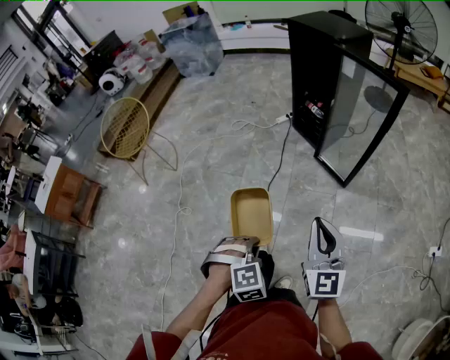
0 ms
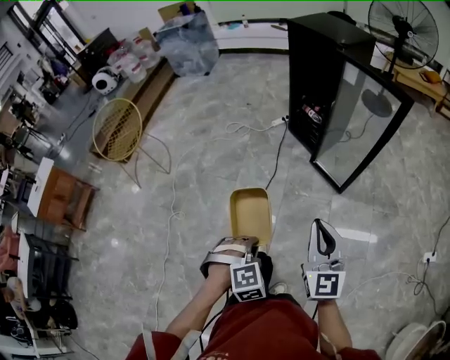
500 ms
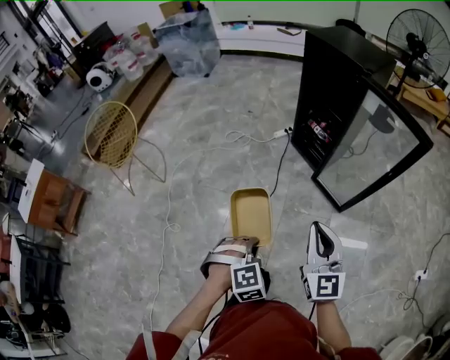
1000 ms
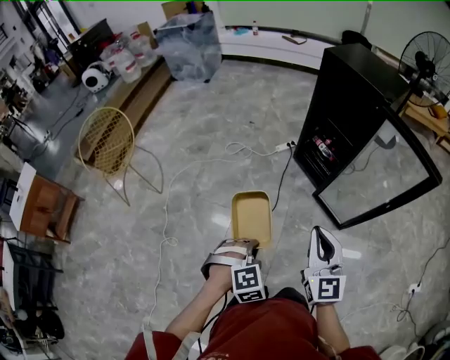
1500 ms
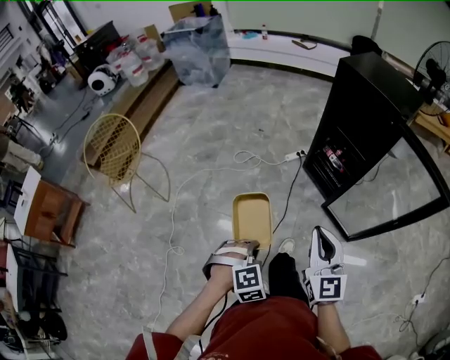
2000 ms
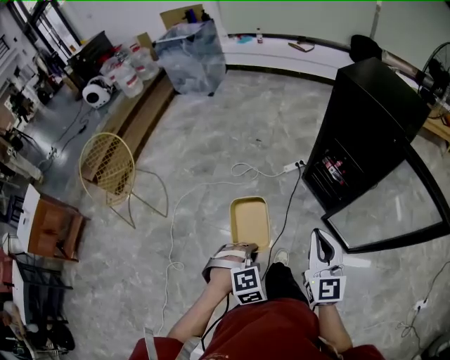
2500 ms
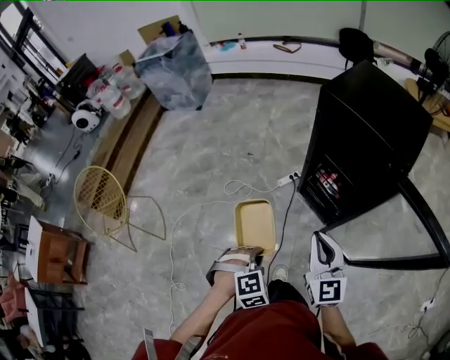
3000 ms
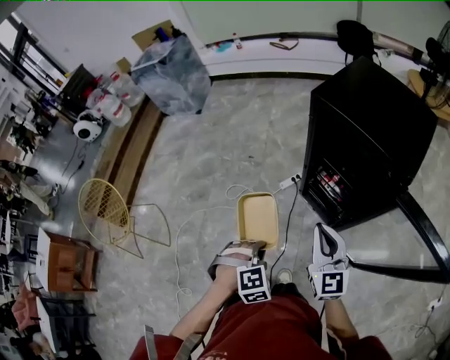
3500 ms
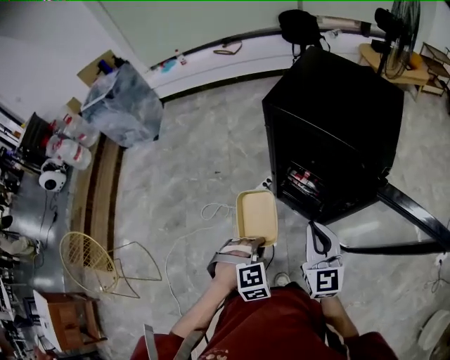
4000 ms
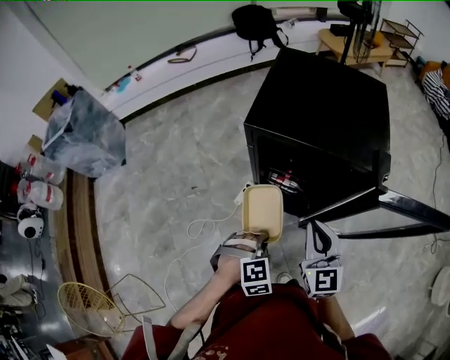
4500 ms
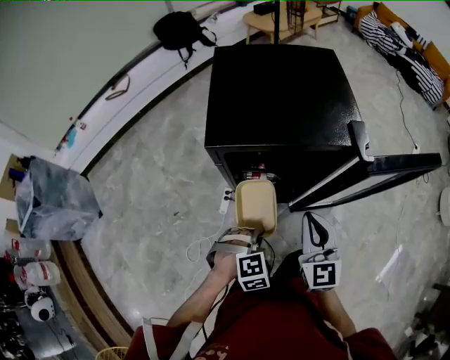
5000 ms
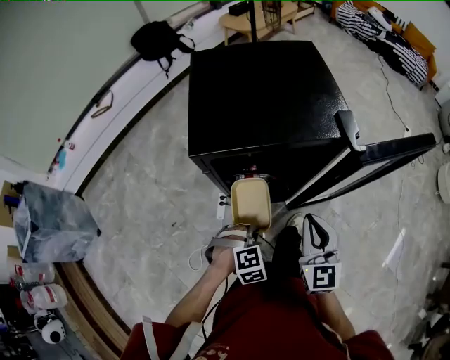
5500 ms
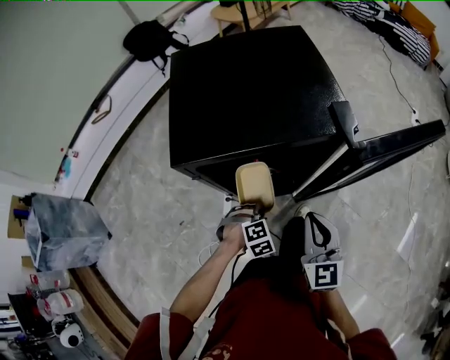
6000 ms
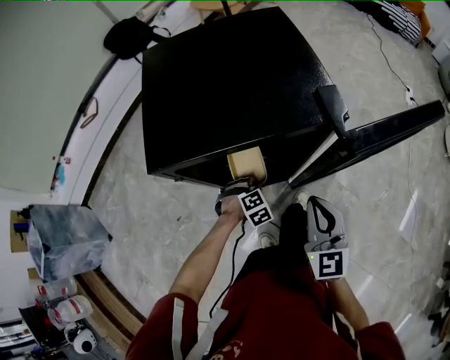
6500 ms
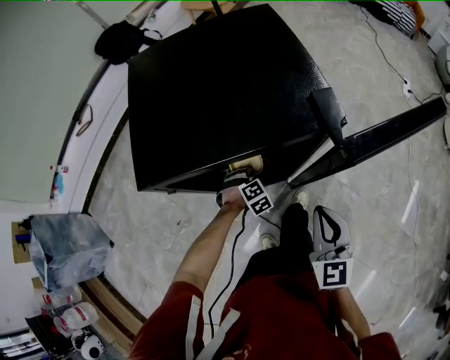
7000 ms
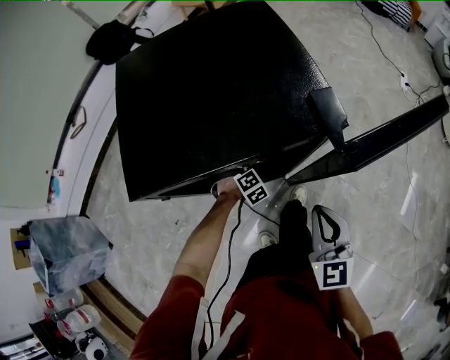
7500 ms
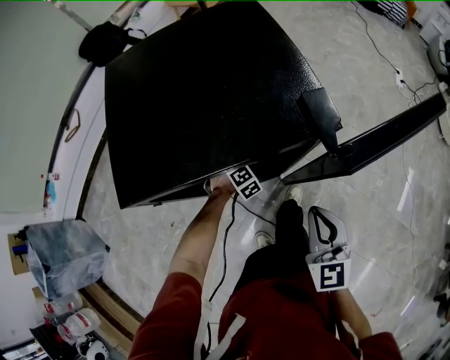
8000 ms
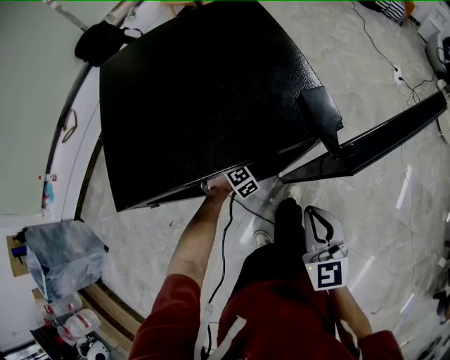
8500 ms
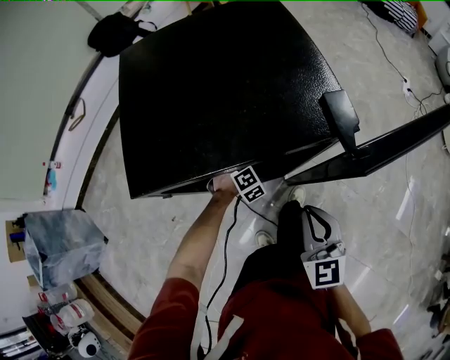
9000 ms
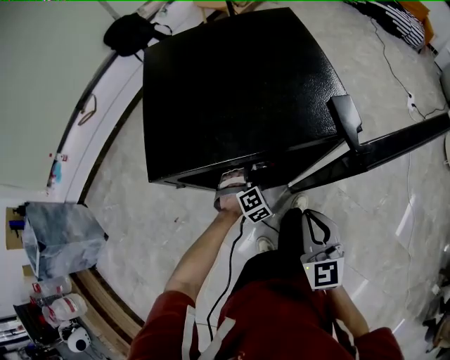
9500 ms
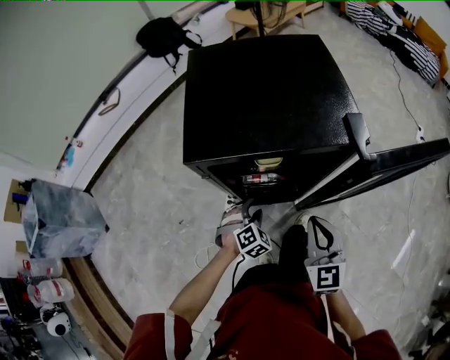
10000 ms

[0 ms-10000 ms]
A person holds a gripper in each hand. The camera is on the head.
0 ms to 2000 ms: Both grippers travel together forward, roughly 35 cm.
2000 ms to 4000 ms: Both grippers move forward and to the right, about 40 cm. The left gripper changes its angle by roughly 20 degrees.
4000 ms to 6000 ms: The left gripper ends up about 25 cm from where it was, and changes its angle by roughly 40 degrees, while the right gripper ends up some 5 cm from where it was, and changes its angle by roughly 50 degrees.
6000 ms to 8000 ms: The right gripper is displaced to the right by about 5 cm; the left gripper travels forward and downward by about 20 cm.
8000 ms to 10000 ms: The left gripper goes about 20 cm backward, upward and to the left, changes its angle by roughly 20 degrees, and opens its fingers; the right gripper is displaced to the left by approximately 5 cm.

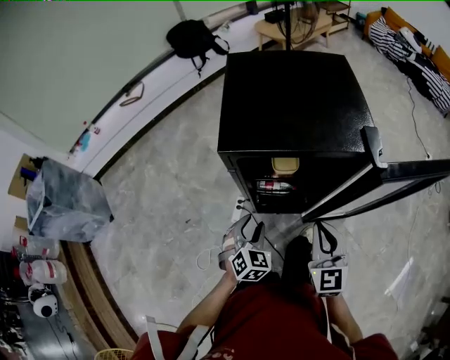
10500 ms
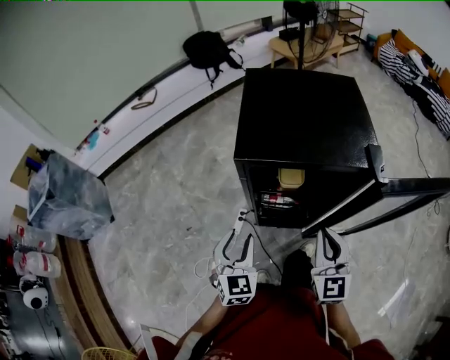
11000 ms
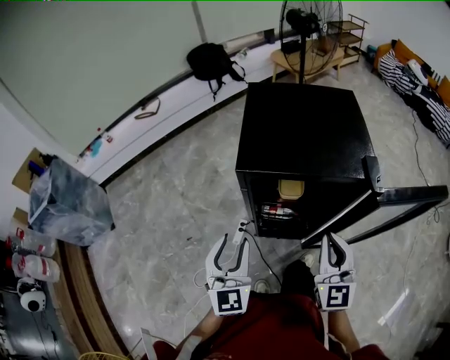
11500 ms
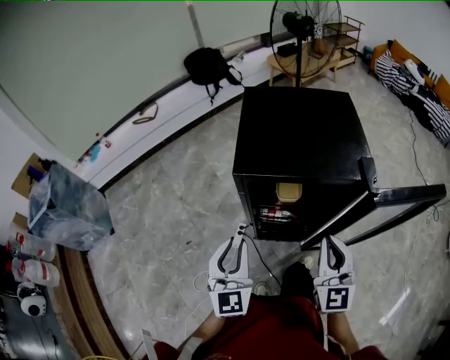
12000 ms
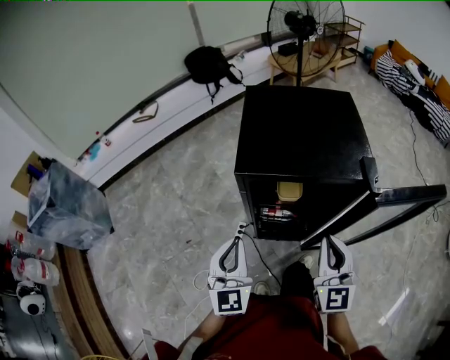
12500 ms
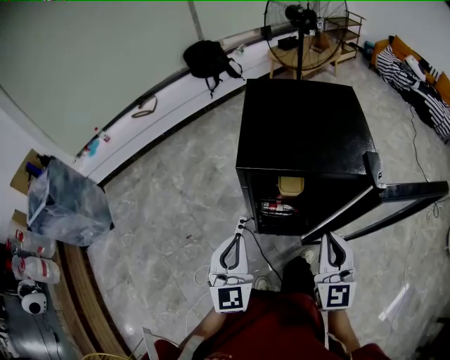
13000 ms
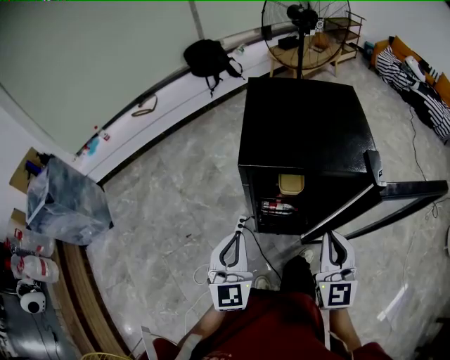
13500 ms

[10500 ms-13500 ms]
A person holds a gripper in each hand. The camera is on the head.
10500 ms to 12000 ms: The left gripper moves upward, about 20 cm, tilts its fingers about 40 degrees upward, and closes. Meanwhile the right gripper goes about 10 cm upward.
12000 ms to 13500 ms: The left gripper closes.

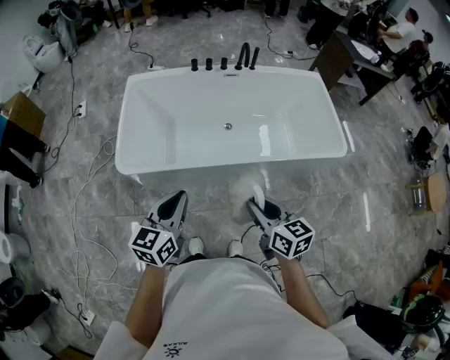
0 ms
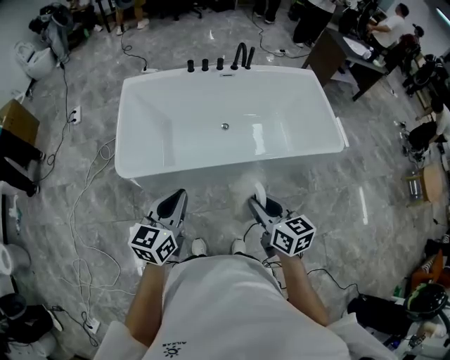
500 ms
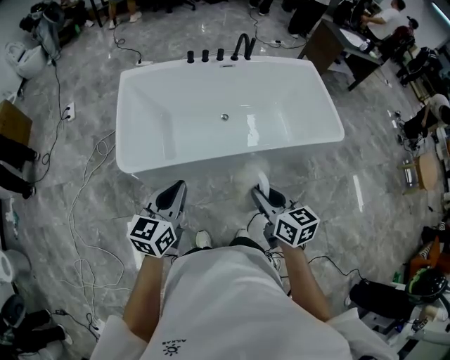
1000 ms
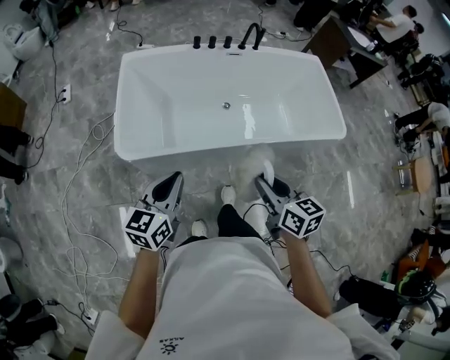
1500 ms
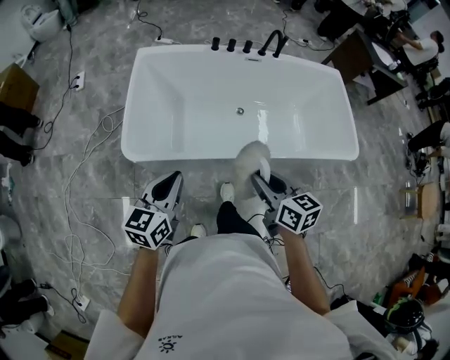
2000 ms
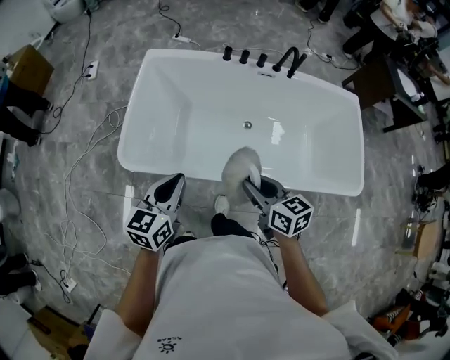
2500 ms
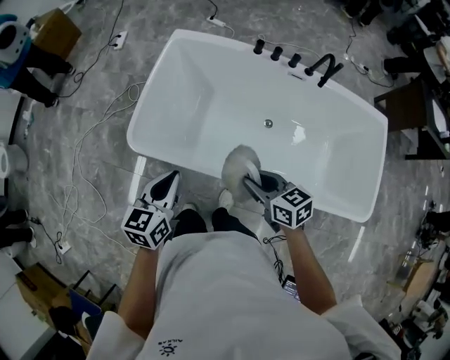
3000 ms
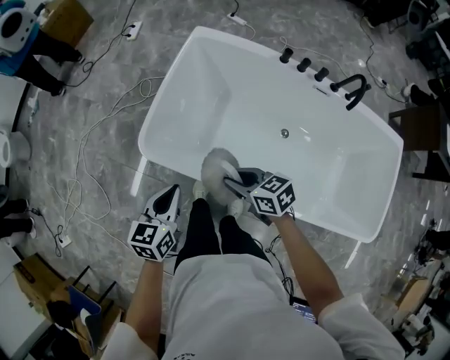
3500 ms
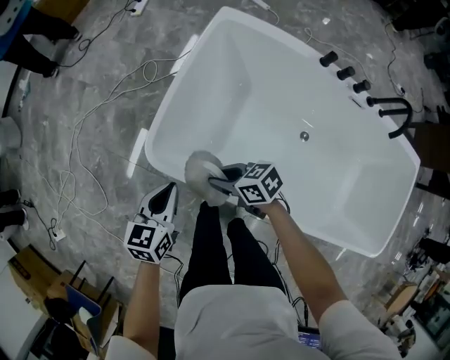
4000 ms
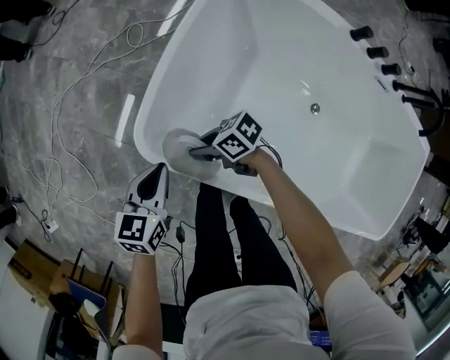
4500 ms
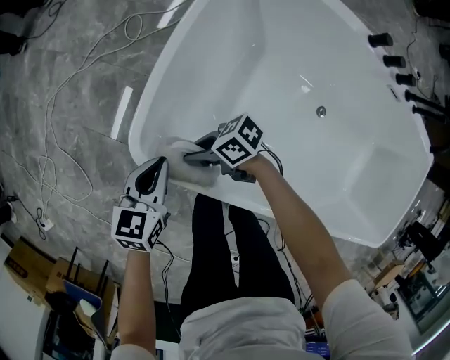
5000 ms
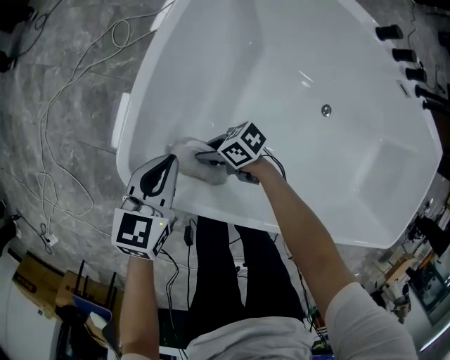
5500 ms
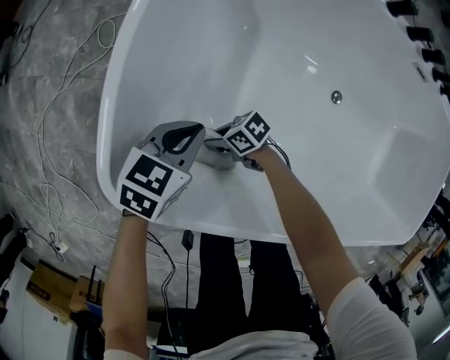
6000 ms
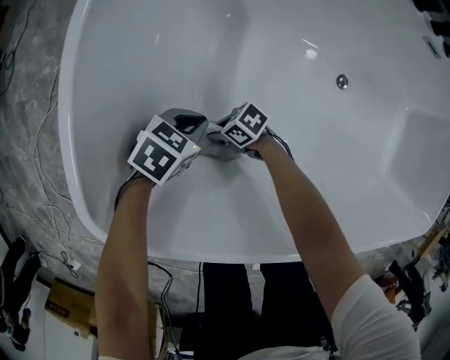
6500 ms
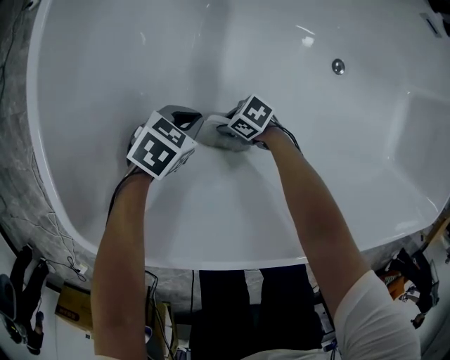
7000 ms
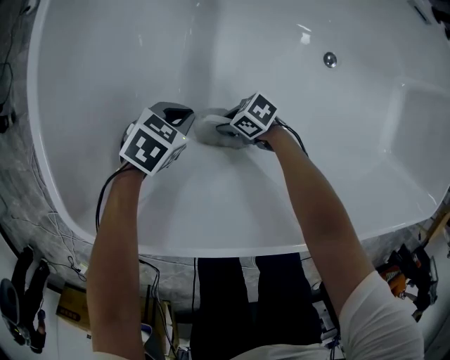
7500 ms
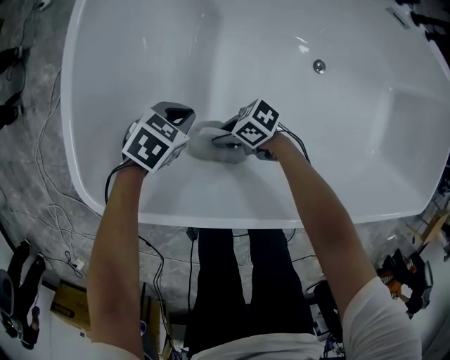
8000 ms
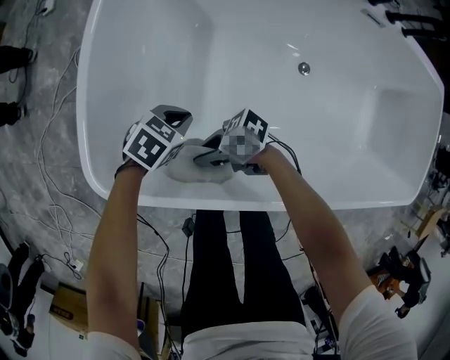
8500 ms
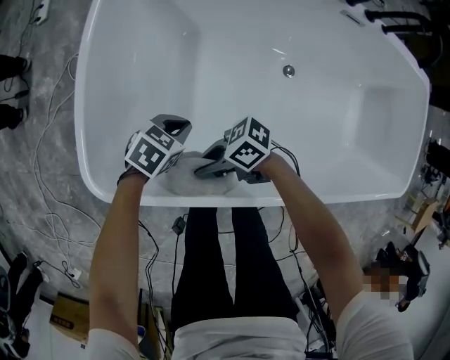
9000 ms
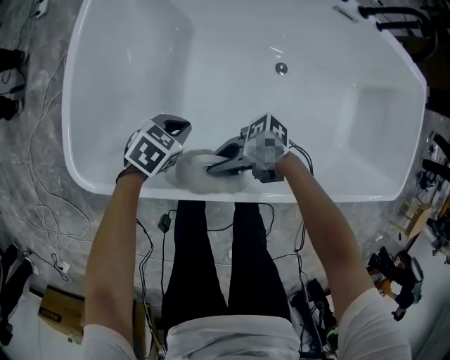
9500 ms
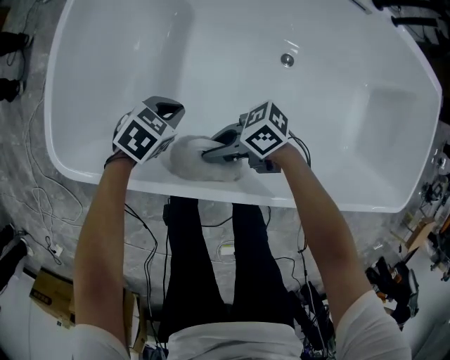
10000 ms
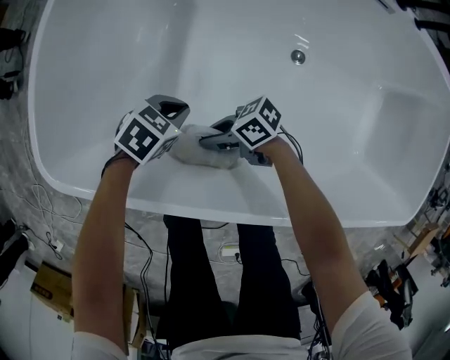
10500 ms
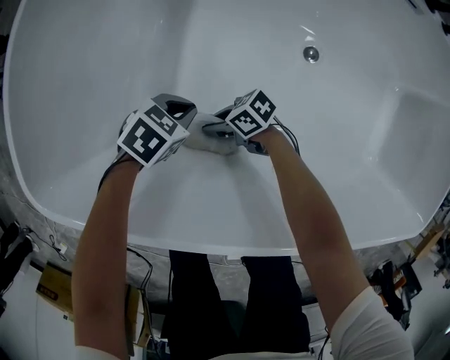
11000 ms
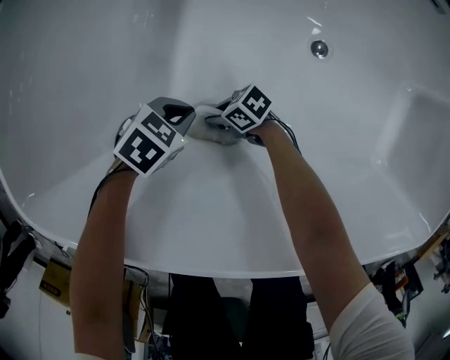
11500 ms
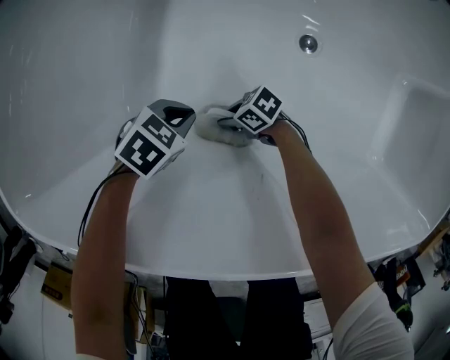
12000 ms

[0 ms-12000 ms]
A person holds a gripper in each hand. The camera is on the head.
0 ms to 2000 ms: The right gripper shifts about 15 cm forward and to the left. Meanwhile the left gripper moves to the left and forward, approximately 15 cm.
2000 ms to 4000 ms: The right gripper changes place by roughly 40 cm, and swivels approximately 70 degrees. Meanwhile the left gripper changes place by roughly 30 cm, and changes its angle by approximately 40 degrees.
4000 ms to 6000 ms: The two grippers go about 30 cm downward. The left gripper changes its angle by some 40 degrees.
6000 ms to 8000 ms: The left gripper goes approximately 10 cm downward, and rotates roughly 20 degrees. The right gripper goes downward and returns, approximately 15 cm each way.
8000 ms to 10000 ms: The right gripper is displaced upward by roughly 15 cm. Meanwhile the left gripper changes place by about 10 cm.
10000 ms to 12000 ms: The left gripper travels downward by roughly 15 cm. The right gripper is displaced downward by roughly 30 cm, and swivels about 20 degrees.

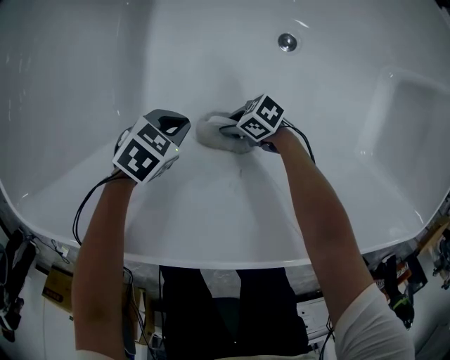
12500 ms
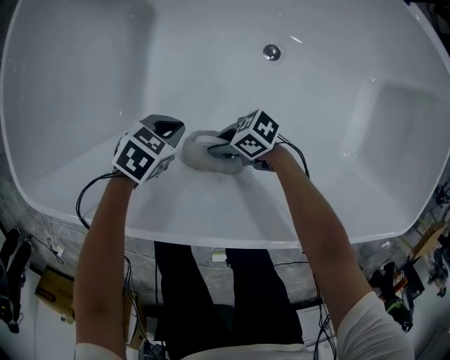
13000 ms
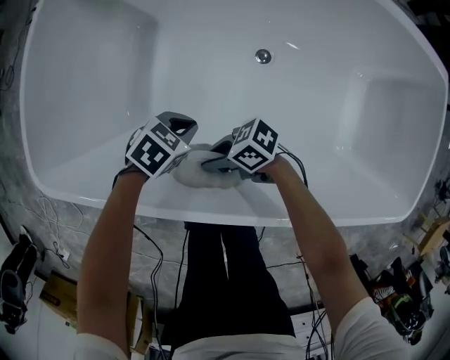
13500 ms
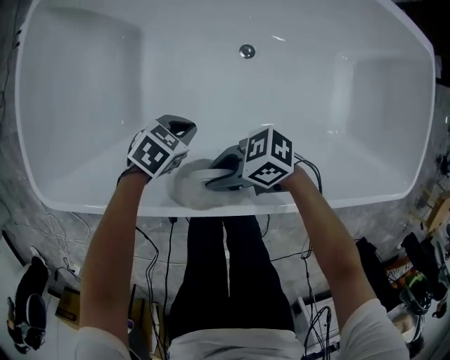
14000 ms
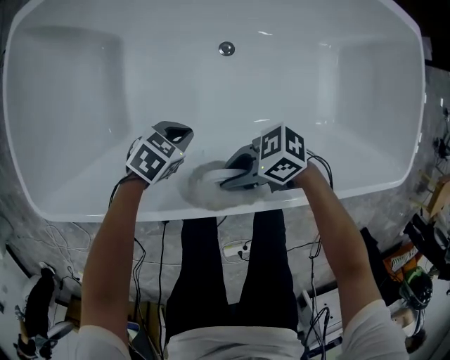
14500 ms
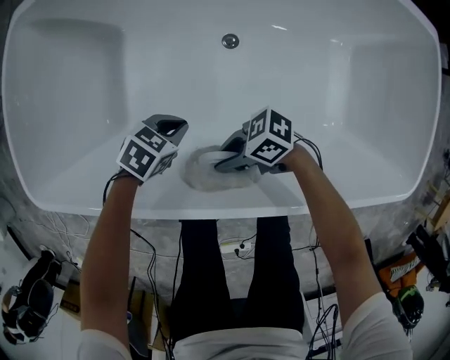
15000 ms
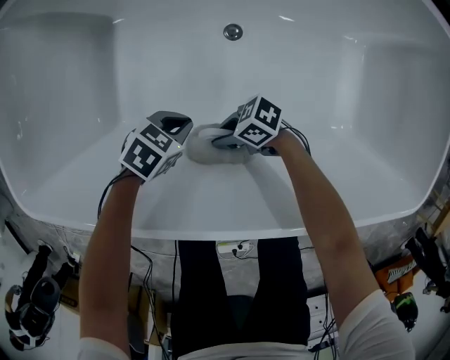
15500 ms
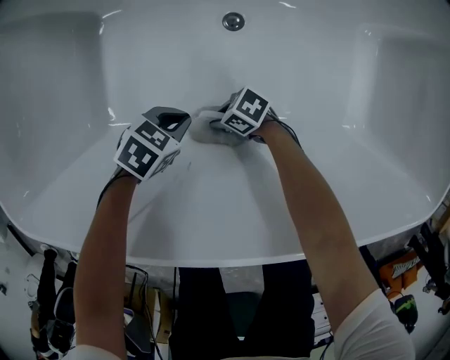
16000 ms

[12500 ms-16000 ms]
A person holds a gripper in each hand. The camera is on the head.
12500 ms to 14500 ms: The left gripper moves upward, approximately 15 cm; the right gripper shifts some 35 cm upward.
14500 ms to 16000 ms: Both grippers travel together downward and to the left, approximately 40 cm.
